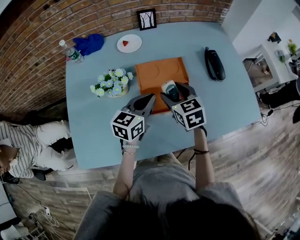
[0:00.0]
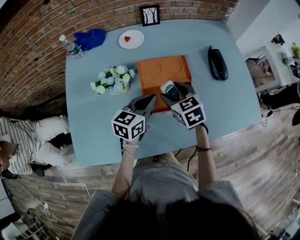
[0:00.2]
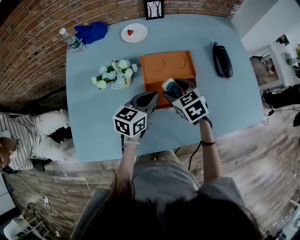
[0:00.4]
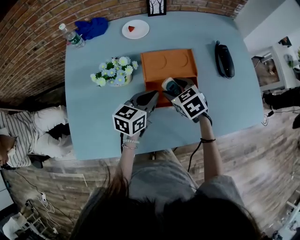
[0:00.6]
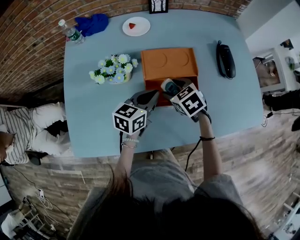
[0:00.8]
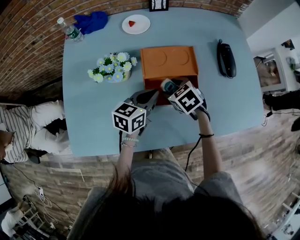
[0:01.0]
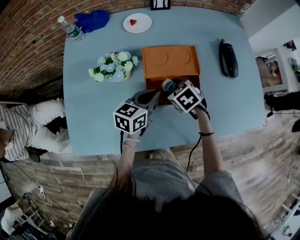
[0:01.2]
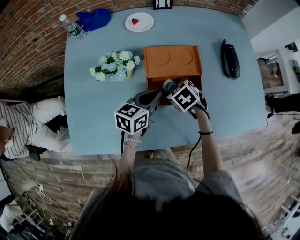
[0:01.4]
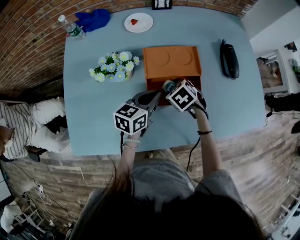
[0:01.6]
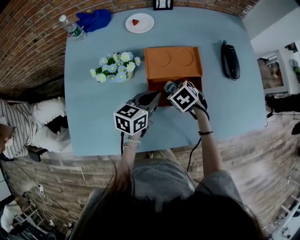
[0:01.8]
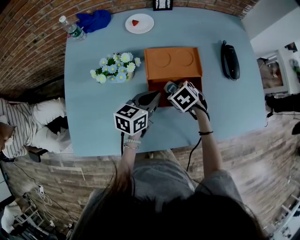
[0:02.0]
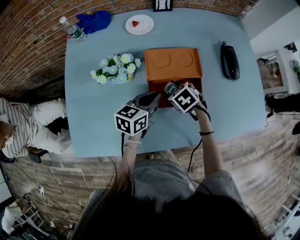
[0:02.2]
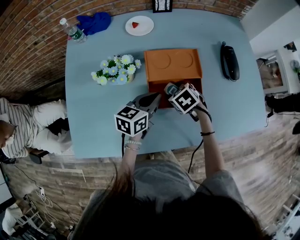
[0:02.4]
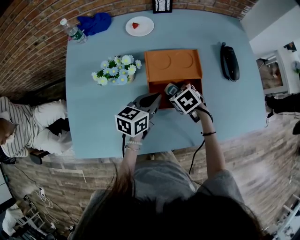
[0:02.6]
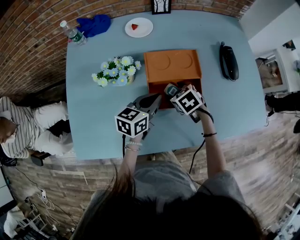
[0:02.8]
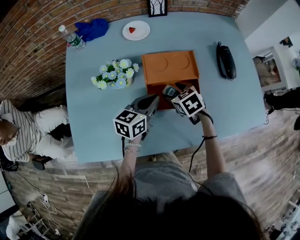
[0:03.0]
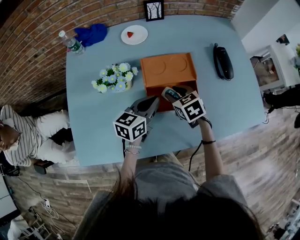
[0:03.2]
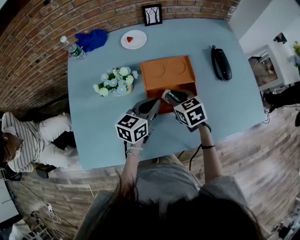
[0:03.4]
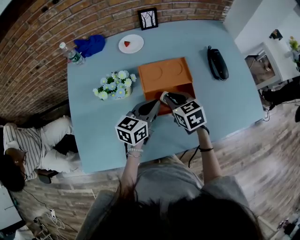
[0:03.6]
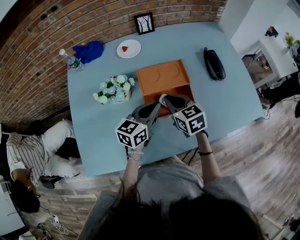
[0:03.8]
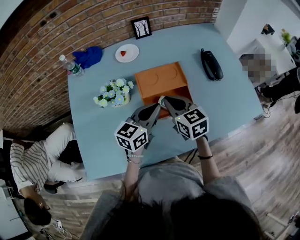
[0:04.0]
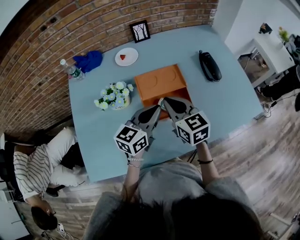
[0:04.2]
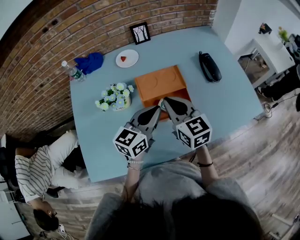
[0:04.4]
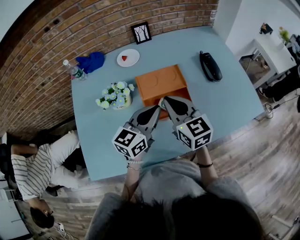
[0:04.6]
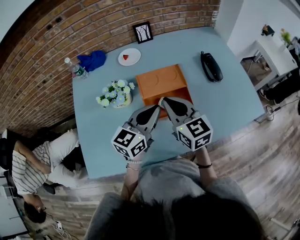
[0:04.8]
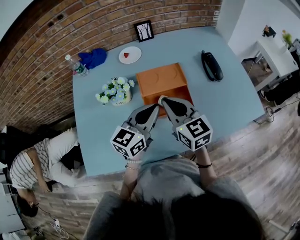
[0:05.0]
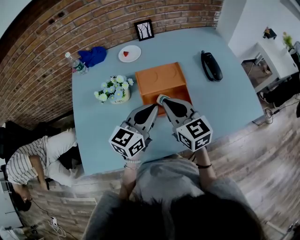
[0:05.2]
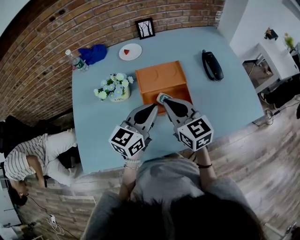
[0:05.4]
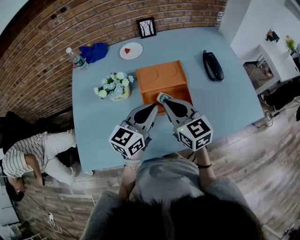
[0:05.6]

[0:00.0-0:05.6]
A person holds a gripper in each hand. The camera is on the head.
0:00.0 to 0:01.4: The right gripper goes some 15 cm downward, and points its fingers about 30 degrees further downward, while the left gripper is displaced downward by about 5 cm.
0:01.4 to 0:02.8: The grippers stay close to where they were, moving slightly.
0:02.8 to 0:04.2: The right gripper shifts approximately 20 cm upward, tilts its fingers approximately 40 degrees upward, and closes its fingers; the left gripper goes approximately 10 cm upward.
0:04.2 to 0:05.6: The grippers make only small movements.

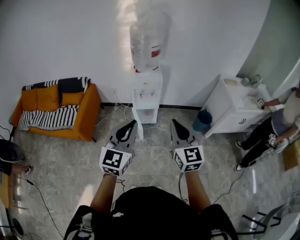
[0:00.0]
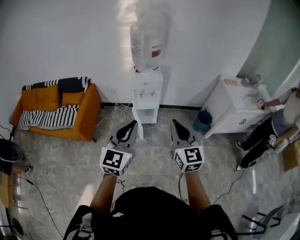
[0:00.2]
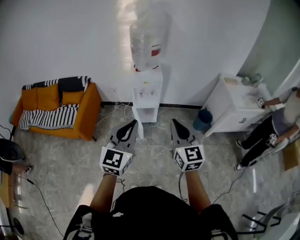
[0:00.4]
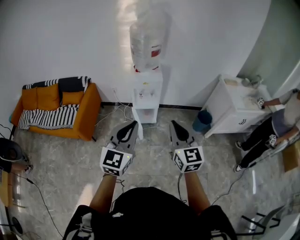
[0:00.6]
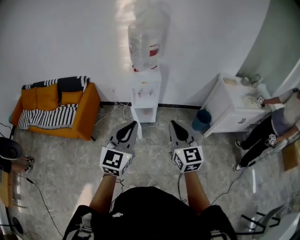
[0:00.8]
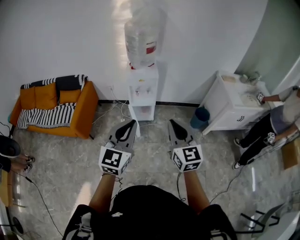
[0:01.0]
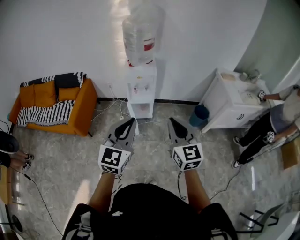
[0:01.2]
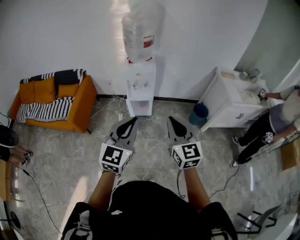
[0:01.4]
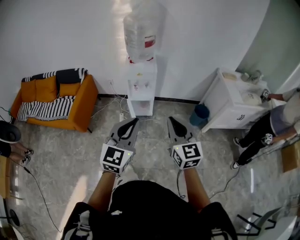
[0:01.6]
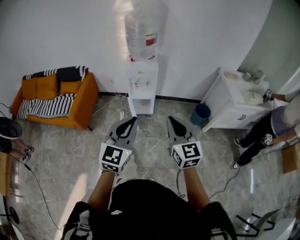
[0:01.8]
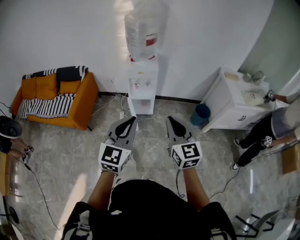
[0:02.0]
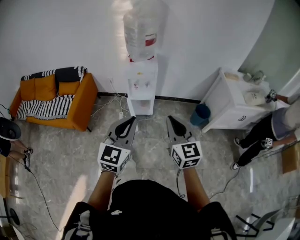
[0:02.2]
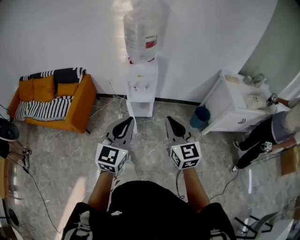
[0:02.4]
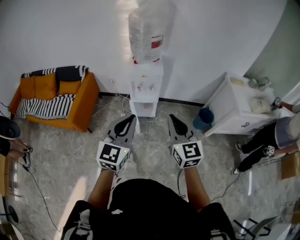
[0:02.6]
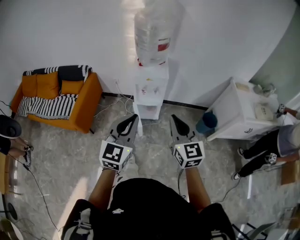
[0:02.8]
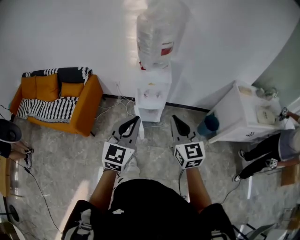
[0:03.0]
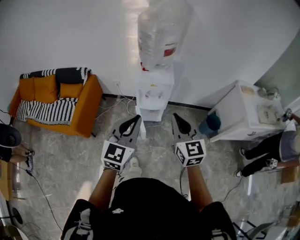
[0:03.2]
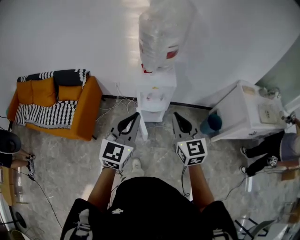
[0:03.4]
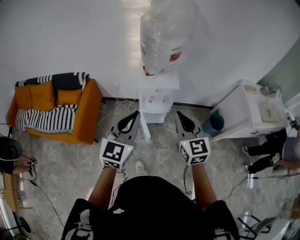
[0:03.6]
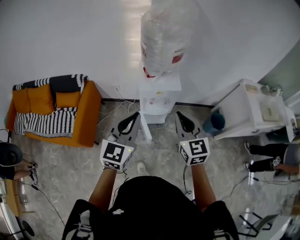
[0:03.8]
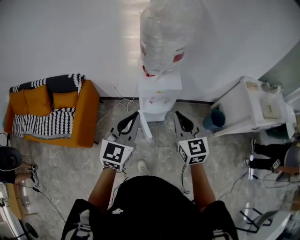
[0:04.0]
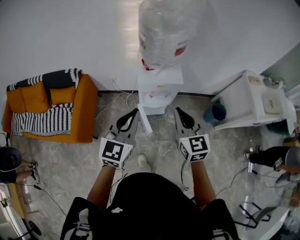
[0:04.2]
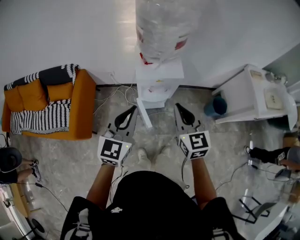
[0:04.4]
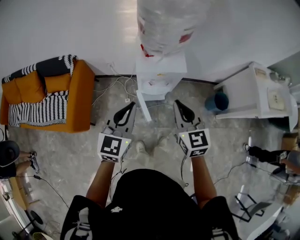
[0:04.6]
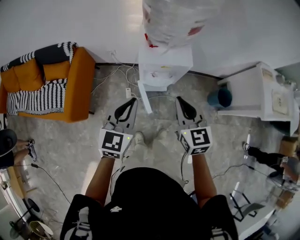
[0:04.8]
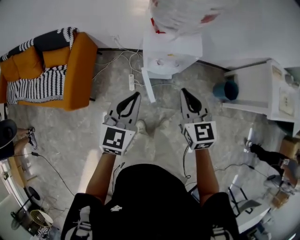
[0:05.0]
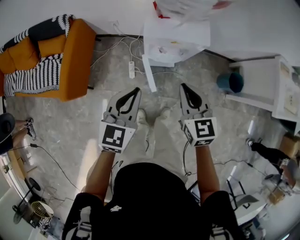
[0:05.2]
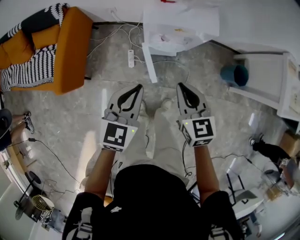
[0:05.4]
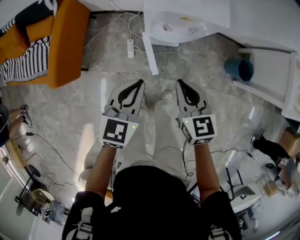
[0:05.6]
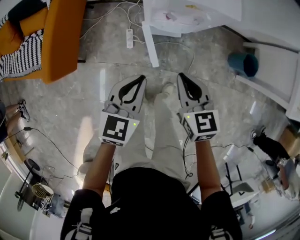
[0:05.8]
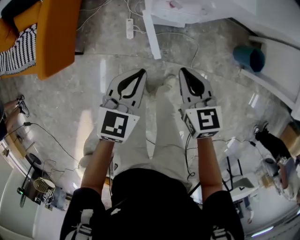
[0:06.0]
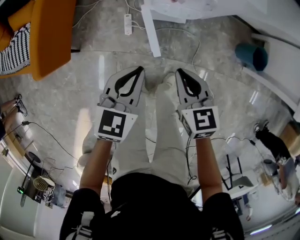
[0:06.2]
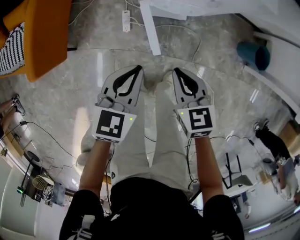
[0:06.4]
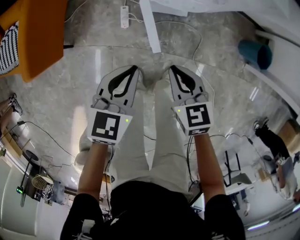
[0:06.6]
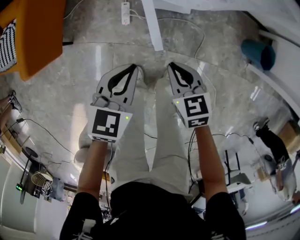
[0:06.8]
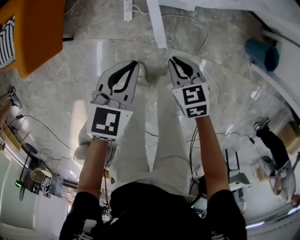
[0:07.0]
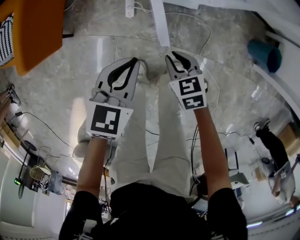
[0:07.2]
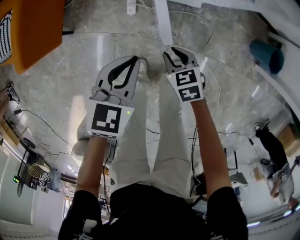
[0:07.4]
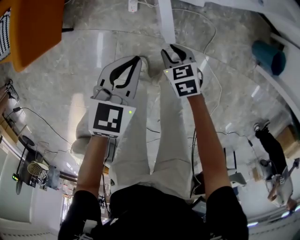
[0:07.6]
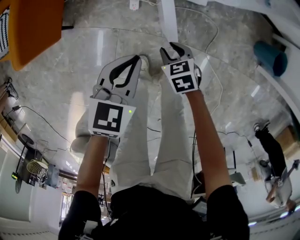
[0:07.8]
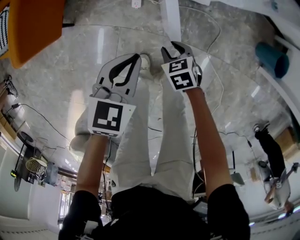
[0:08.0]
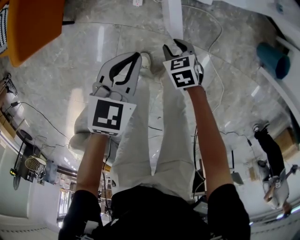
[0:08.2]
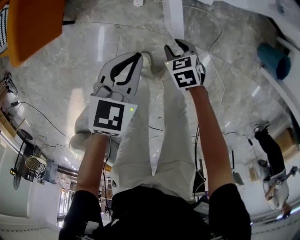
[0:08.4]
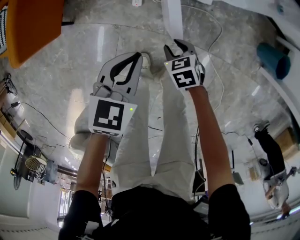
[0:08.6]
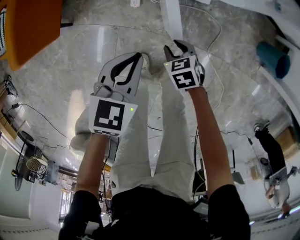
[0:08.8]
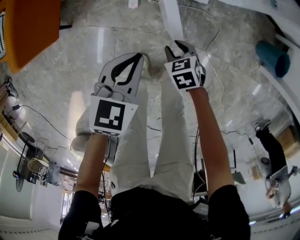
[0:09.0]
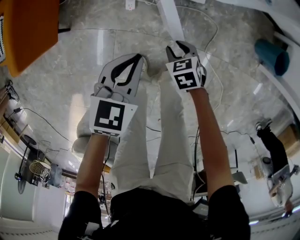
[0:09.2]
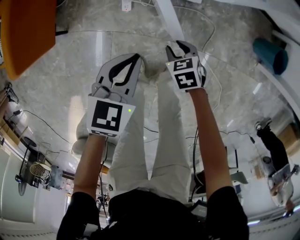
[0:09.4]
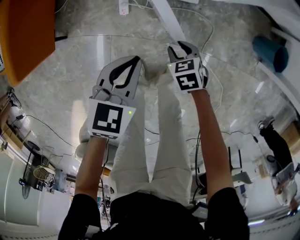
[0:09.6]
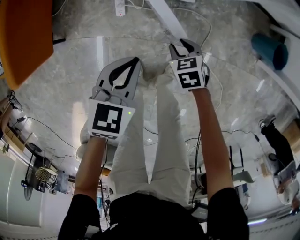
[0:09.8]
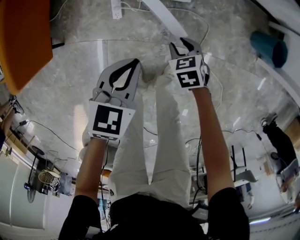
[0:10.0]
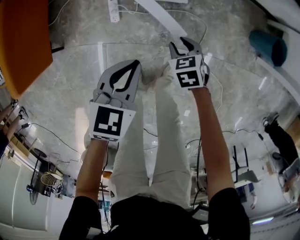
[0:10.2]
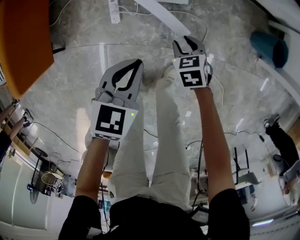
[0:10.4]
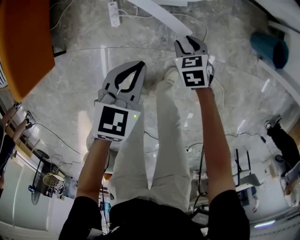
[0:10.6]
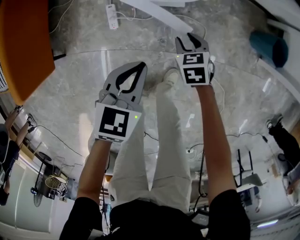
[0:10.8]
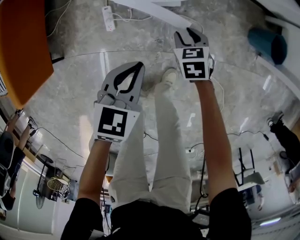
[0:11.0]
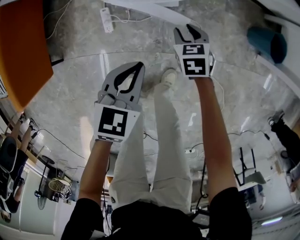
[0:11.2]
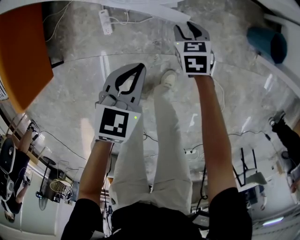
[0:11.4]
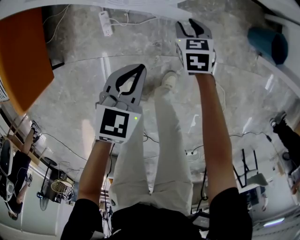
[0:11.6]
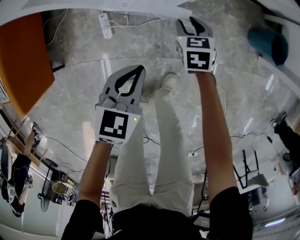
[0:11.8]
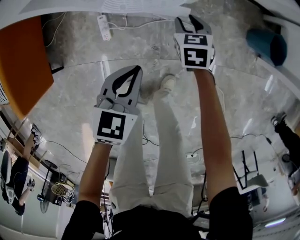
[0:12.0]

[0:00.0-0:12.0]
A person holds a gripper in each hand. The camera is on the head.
0:00.0 to 0:01.6: Both grippers travel together to the right, about 5 cm.
0:01.6 to 0:03.0: The left gripper is displaced forward and to the left by approximately 20 cm; the right gripper travels forward by some 20 cm.
0:03.0 to 0:04.4: The two grippers go roughly 20 cm forward and to the left.
0:04.4 to 0:06.0: The grippers both shift downward by some 35 cm. The left gripper turns by about 30 degrees. The right gripper swivels about 30 degrees.
0:06.0 to 0:07.6: The left gripper heads downward, covering approximately 15 cm. The right gripper is displaced downward by approximately 30 cm, changes its angle by roughly 30 degrees, and opens its fingers.
0:07.6 to 0:09.0: The right gripper travels downward by about 5 cm.
0:09.0 to 0:10.4: The right gripper goes approximately 15 cm to the right and forward. The left gripper goes approximately 10 cm to the right.
0:10.4 to 0:12.0: The right gripper moves forward, approximately 15 cm; the left gripper changes place by approximately 5 cm.

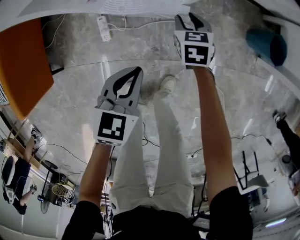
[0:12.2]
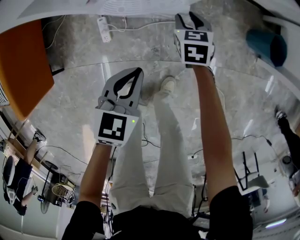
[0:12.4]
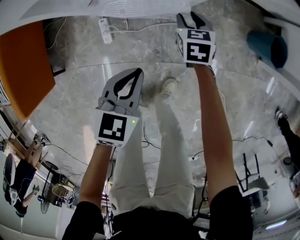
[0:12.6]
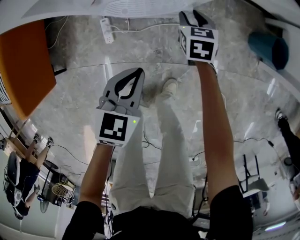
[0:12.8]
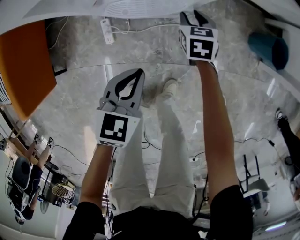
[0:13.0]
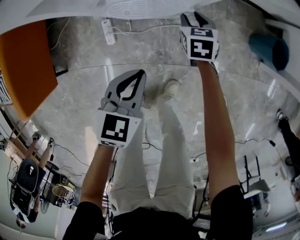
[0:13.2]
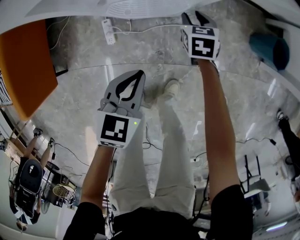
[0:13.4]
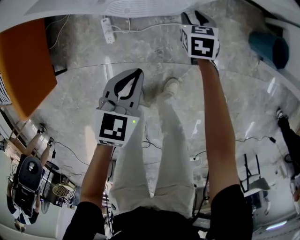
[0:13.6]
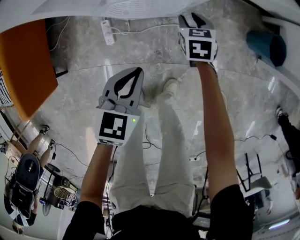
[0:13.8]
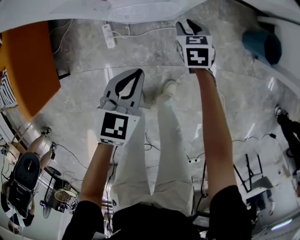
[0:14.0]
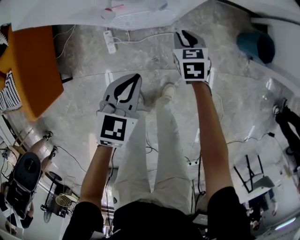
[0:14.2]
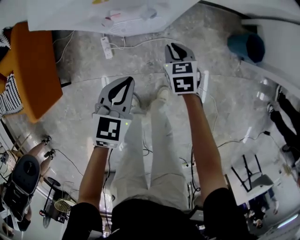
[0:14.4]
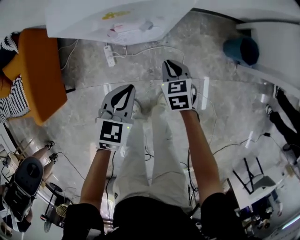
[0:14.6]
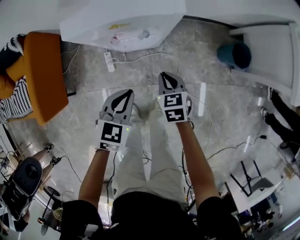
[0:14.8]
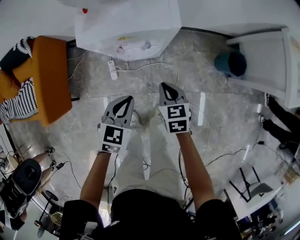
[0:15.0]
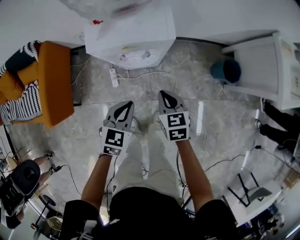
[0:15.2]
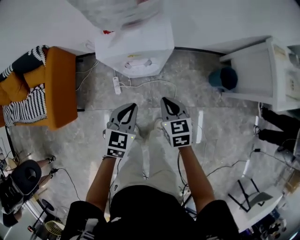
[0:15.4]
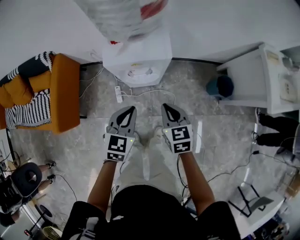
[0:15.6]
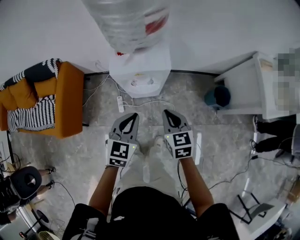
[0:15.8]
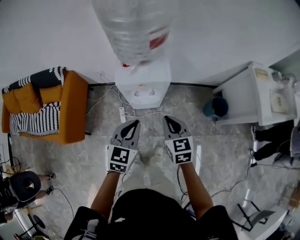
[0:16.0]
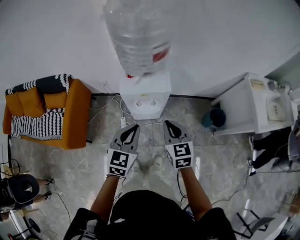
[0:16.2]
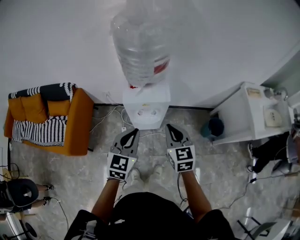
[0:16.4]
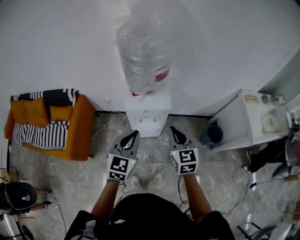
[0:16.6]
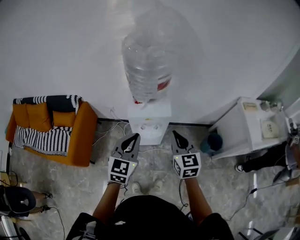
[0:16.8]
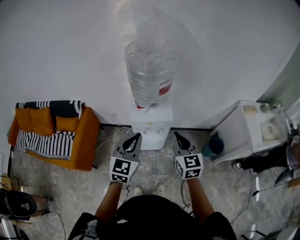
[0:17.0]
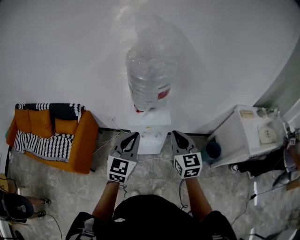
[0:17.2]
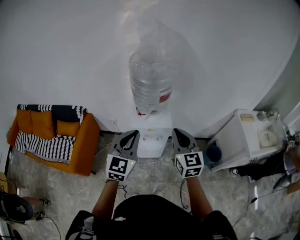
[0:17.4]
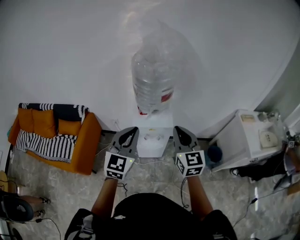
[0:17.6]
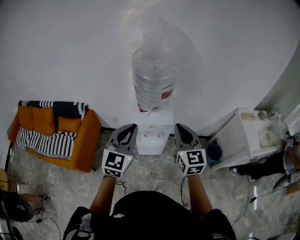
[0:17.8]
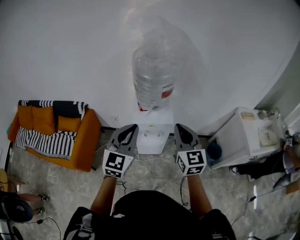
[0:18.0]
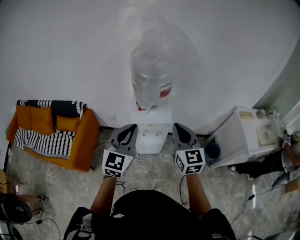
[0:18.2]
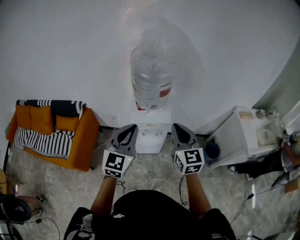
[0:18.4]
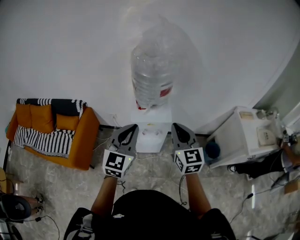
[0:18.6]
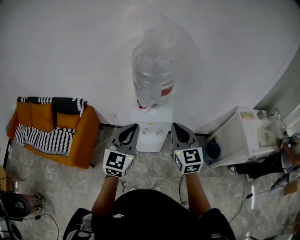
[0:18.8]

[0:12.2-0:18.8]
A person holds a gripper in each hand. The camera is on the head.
0:12.2 to 0:13.8: The grippers make only small movements.
0:13.8 to 0:15.4: The left gripper heads upward, covering approximately 25 cm. The right gripper shifts roughly 40 cm upward and backward, and closes.
0:15.4 to 0:17.2: The grippers both shift upward by roughly 35 cm. The left gripper tips its fingers upward by some 30 degrees; the right gripper points its fingers approximately 30 degrees further upward.
0:17.2 to 0:18.8: The grippers make only small movements.
